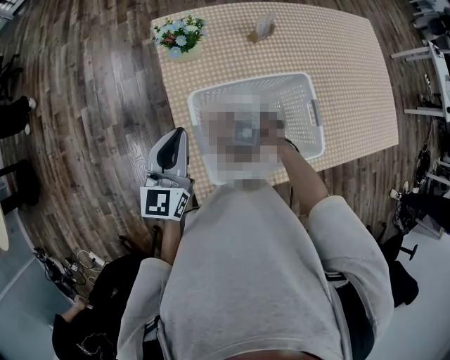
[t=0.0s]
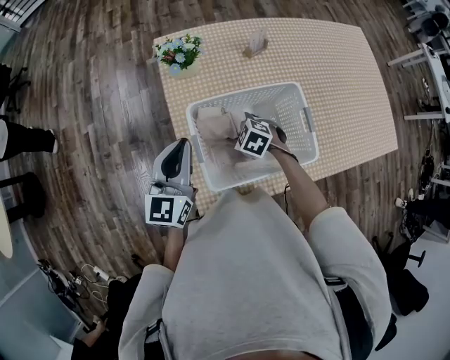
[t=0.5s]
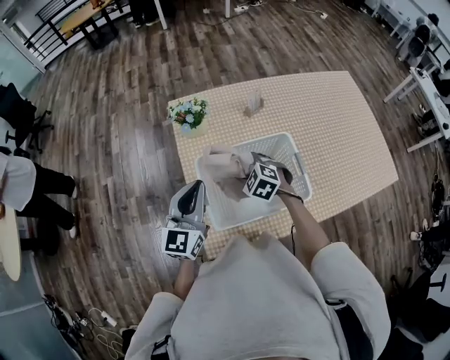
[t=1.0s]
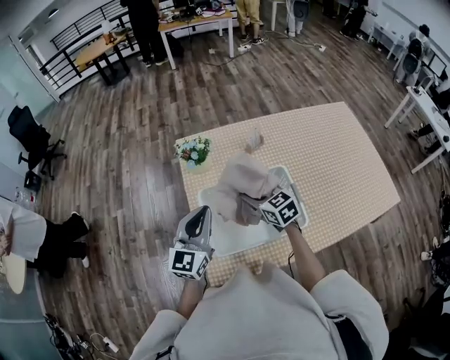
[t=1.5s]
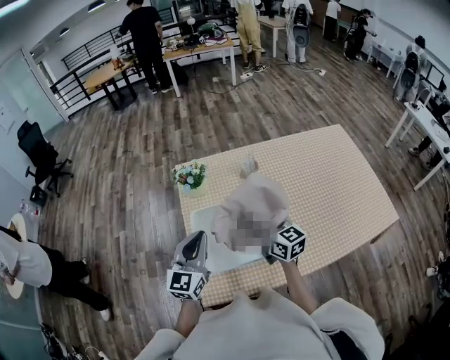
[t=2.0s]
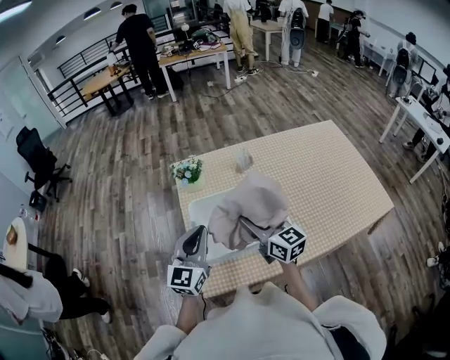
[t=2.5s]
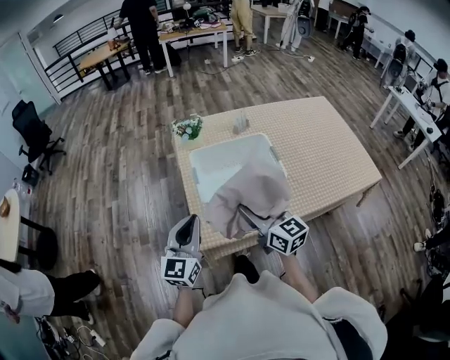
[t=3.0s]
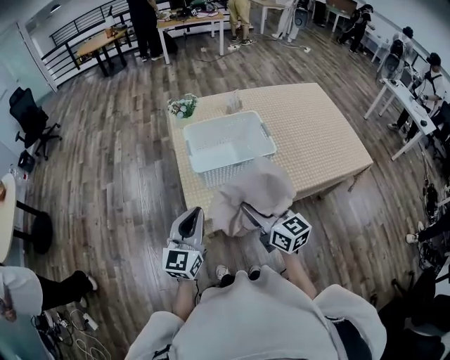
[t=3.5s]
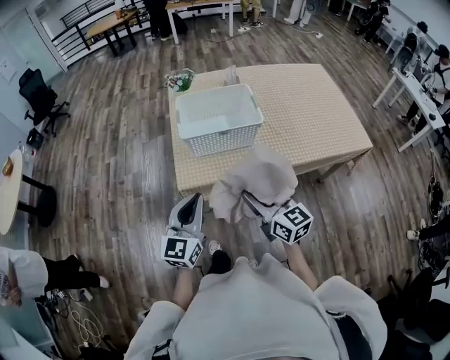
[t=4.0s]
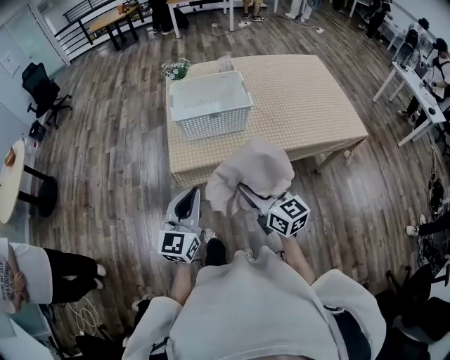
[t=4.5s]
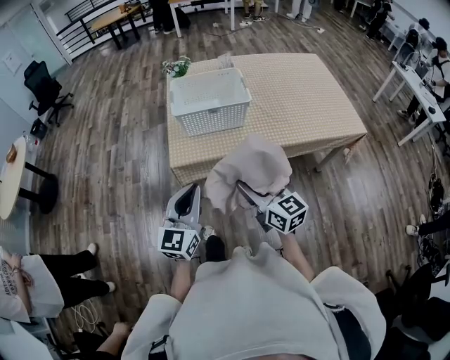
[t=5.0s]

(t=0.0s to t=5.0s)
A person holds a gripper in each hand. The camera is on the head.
t=0.0s - t=2.5s: The right gripper travels upward by approximately 35 cm, and tips its fingers upward by roughly 70 degrees. Meanwhile the left gripper ends up about 15 cm from where it was.
t=2.5s - t=5.0s: The pair of grippers is taken backward, some 40 cm.

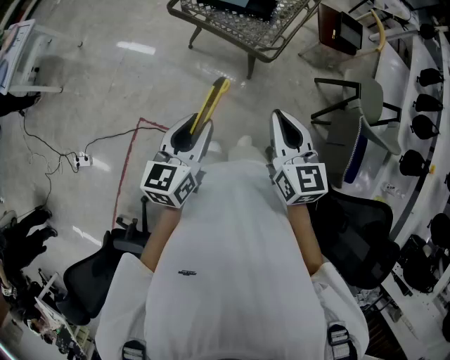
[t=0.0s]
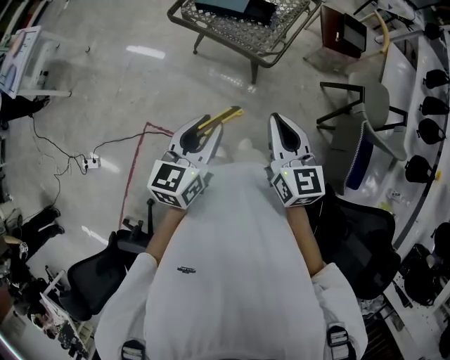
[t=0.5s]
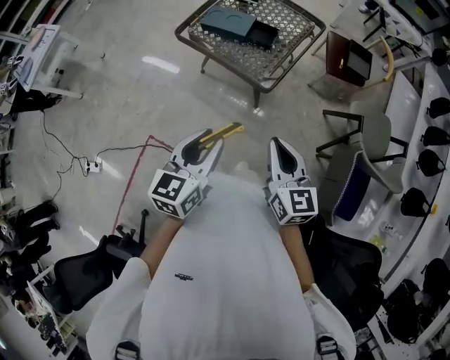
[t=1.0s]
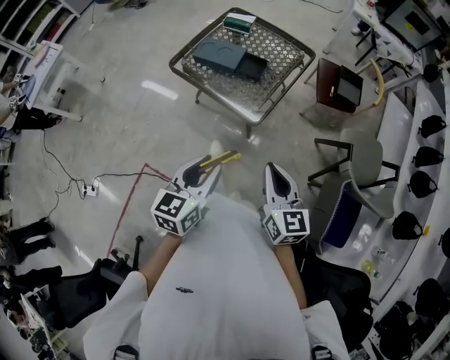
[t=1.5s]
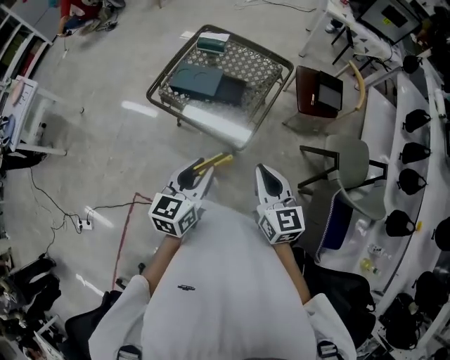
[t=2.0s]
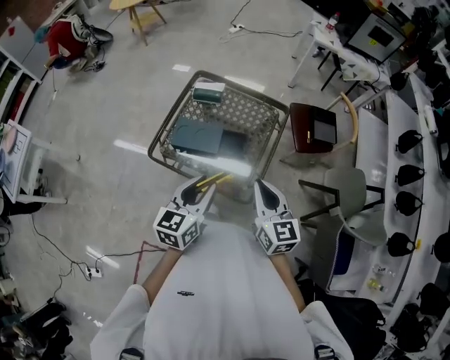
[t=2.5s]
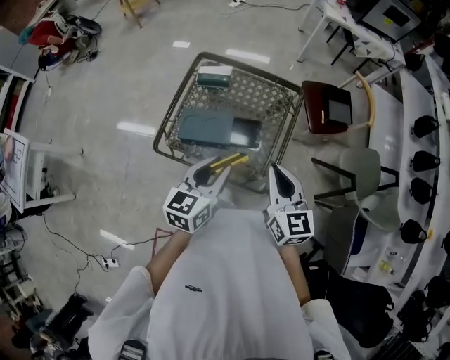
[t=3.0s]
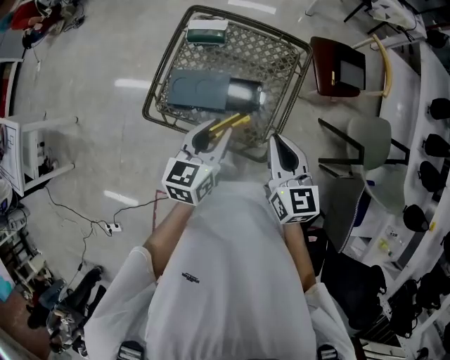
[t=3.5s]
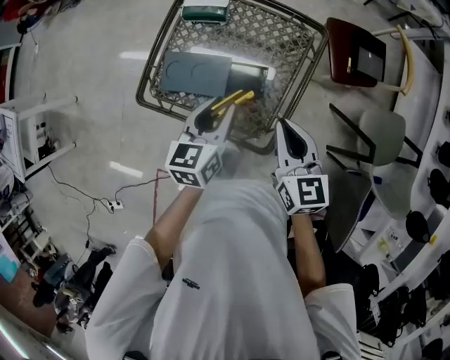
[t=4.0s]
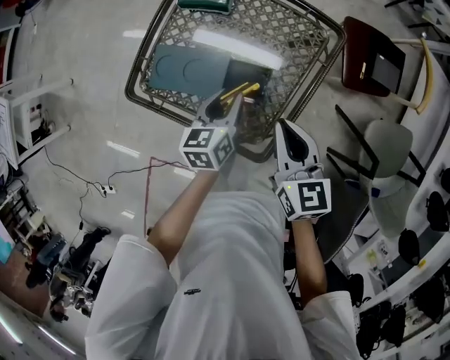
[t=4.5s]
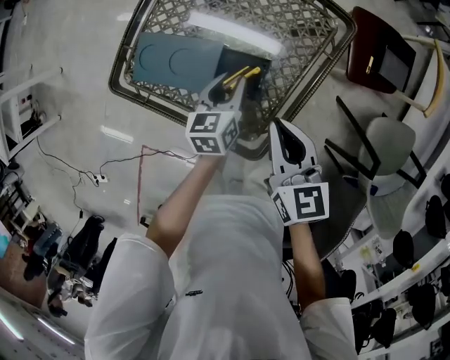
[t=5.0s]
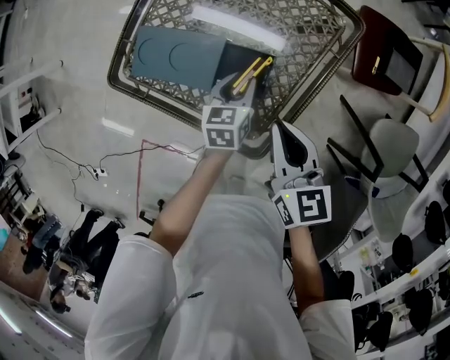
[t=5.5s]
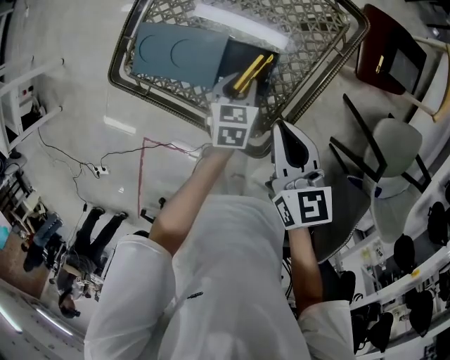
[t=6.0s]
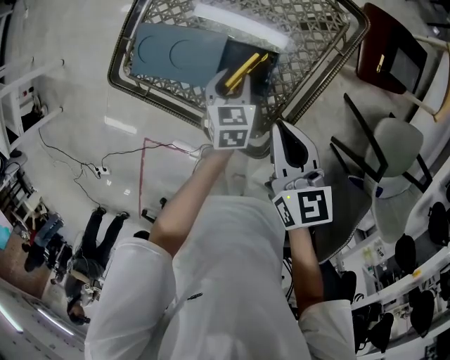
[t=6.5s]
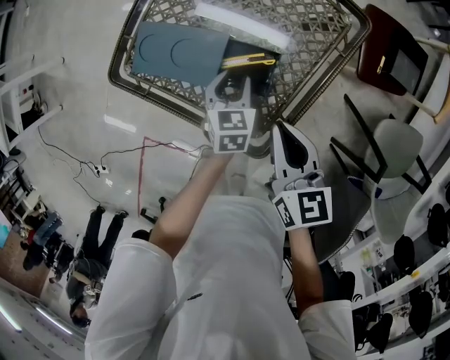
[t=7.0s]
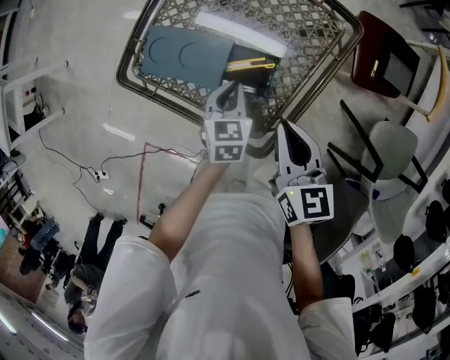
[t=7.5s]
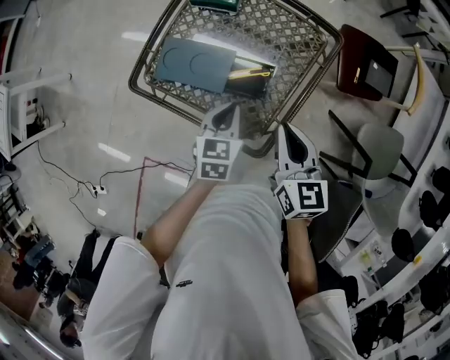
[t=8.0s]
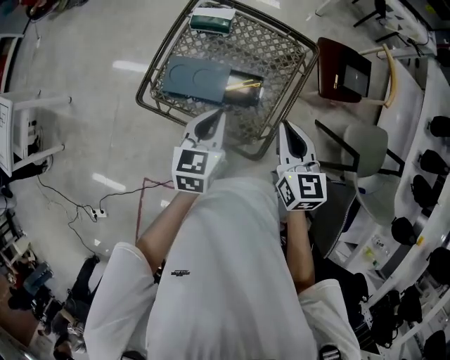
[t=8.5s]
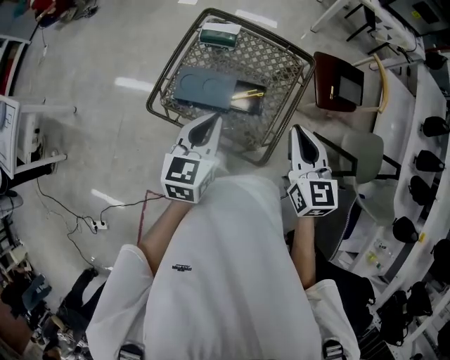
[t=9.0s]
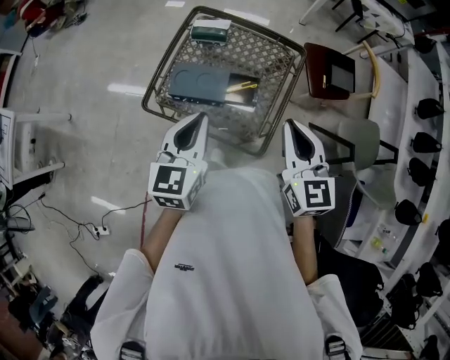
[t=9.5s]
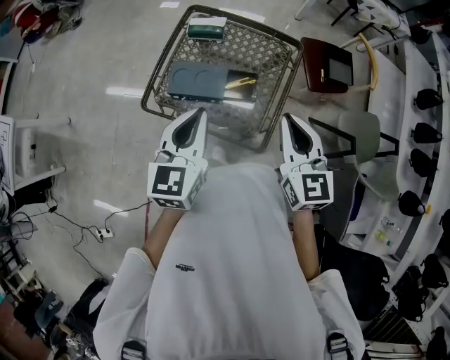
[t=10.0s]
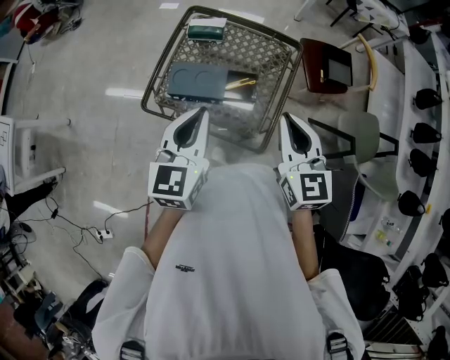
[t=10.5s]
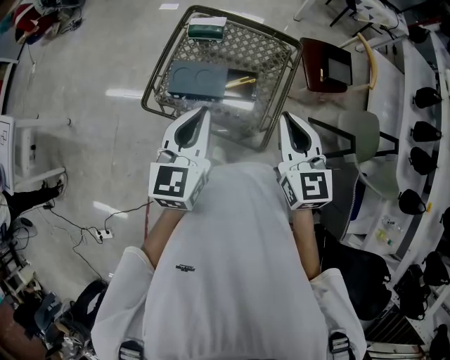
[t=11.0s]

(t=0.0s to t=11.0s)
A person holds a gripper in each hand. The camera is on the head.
t=0.0s - t=2.0s: Both grippers travel together forward and to the right, some 25 cm.
t=2.0s - t=3.5s: The two grippers go approximately 25 cm forward.
t=3.5s - t=5.5s: The right gripper heads downward and forward, covering roughly 20 cm, while the left gripper goes approximately 30 cm downward, and swivels roughly 30 degrees.
t=5.5s - t=7.5s: The left gripper shifts by approximately 5 cm, and closes.
t=7.5s - t=9.0s: The right gripper goes roughly 20 cm upward, and rotates some 20 degrees. Meanwhile the left gripper heads upward, covering some 30 cm, and rotates approximately 30 degrees.
t=9.0s - t=11.0s: The right gripper ends up roughly 5 cm from where it was; the left gripper goes about 5 cm upward.

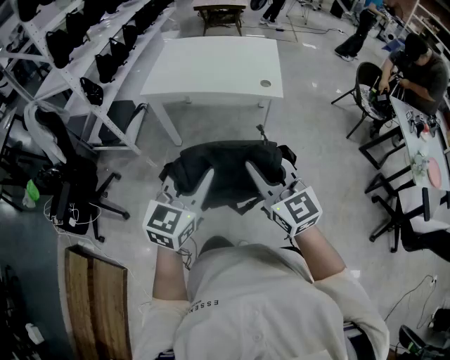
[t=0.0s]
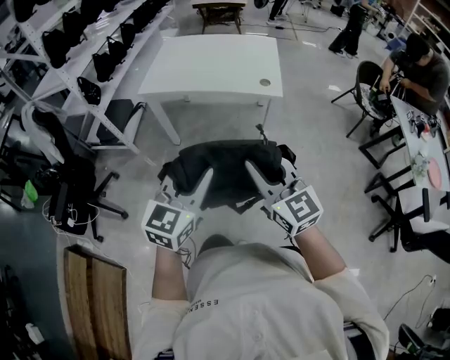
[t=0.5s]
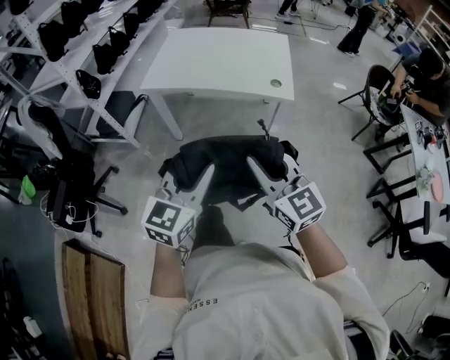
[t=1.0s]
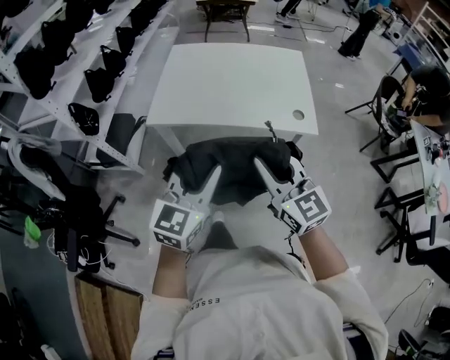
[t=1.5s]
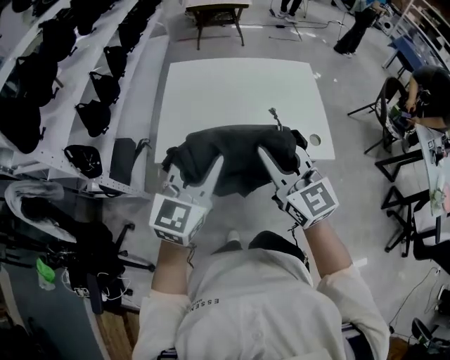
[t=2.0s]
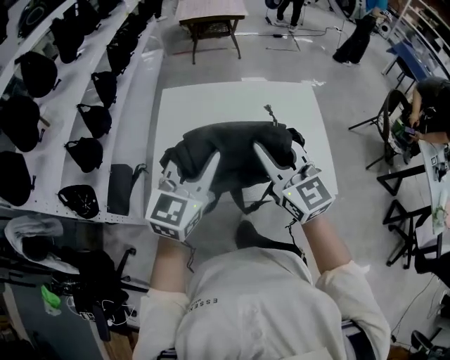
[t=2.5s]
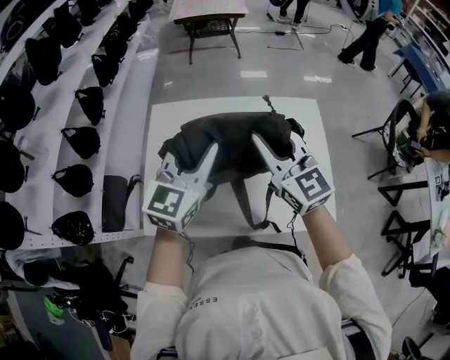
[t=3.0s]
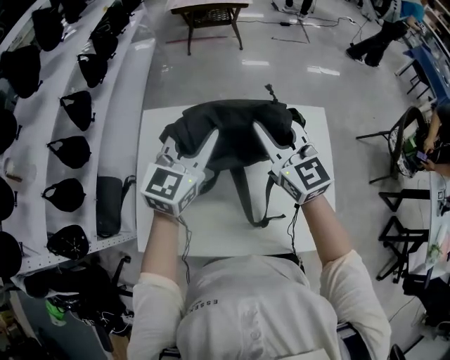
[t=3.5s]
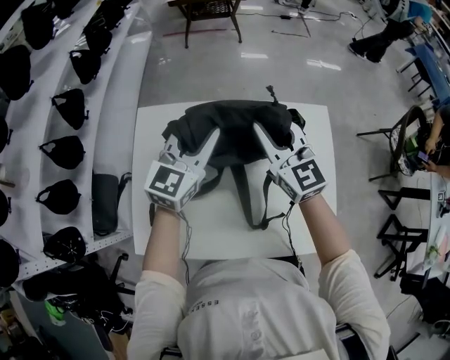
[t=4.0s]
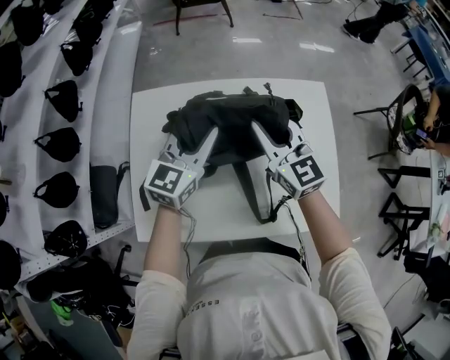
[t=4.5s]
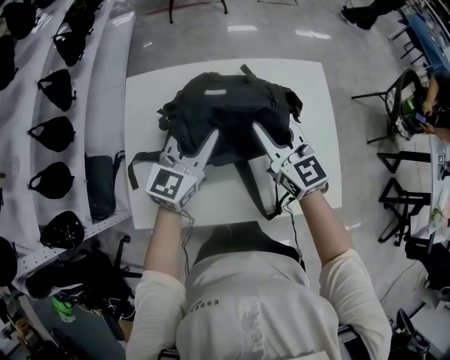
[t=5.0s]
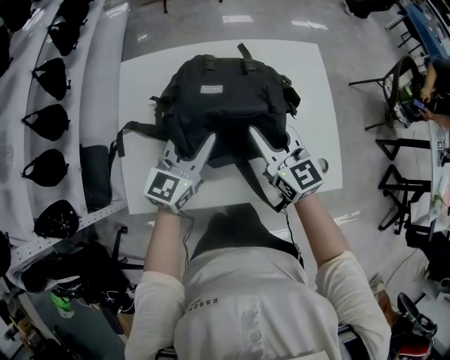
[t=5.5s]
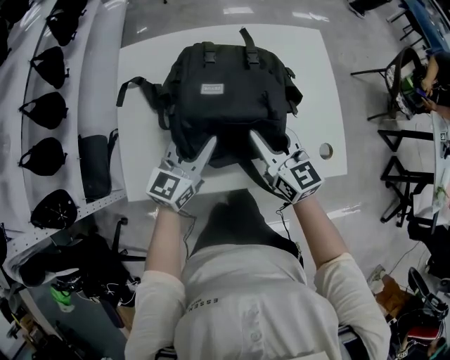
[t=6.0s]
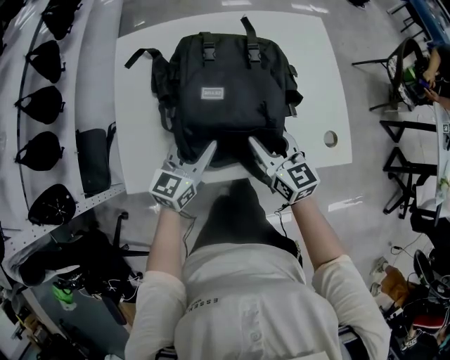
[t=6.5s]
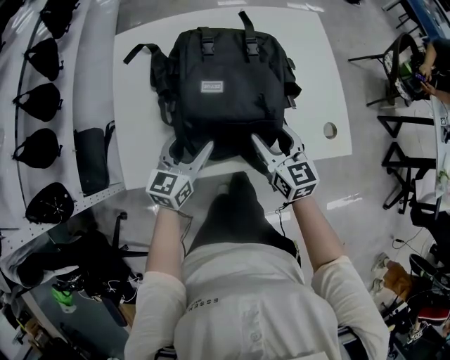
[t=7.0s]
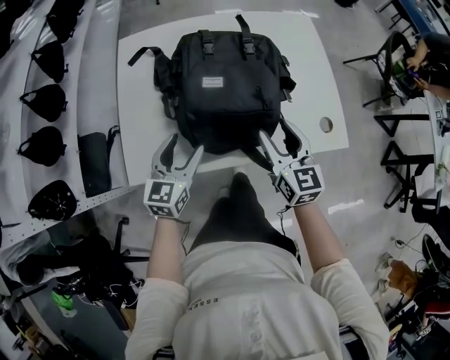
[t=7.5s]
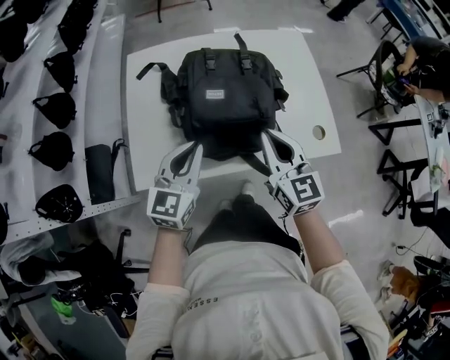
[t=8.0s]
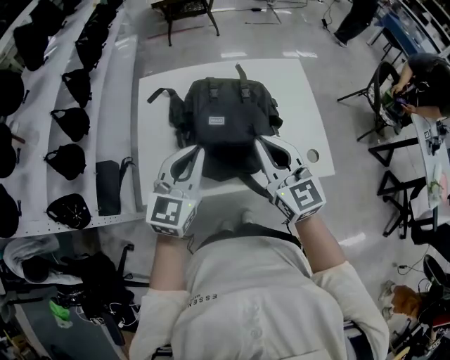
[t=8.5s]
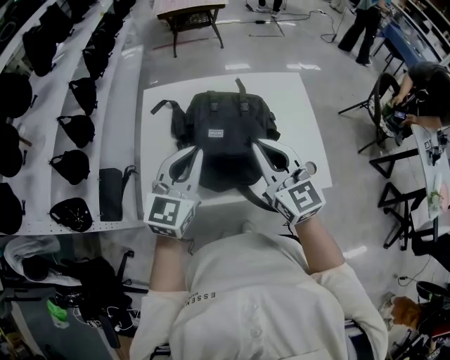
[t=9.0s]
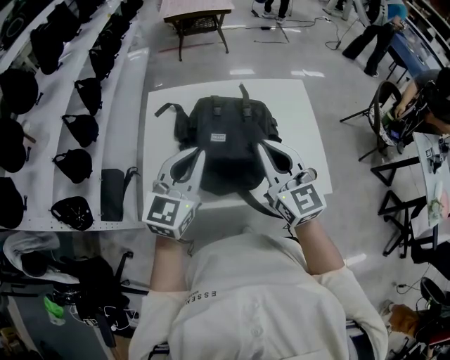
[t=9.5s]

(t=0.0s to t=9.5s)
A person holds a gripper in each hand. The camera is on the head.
t=0.0s - t=2.0s: The pair of grippers is taken forward, some 50 cm.
t=2.0s - t=4.0s: The pair of grippers is taken forward, approximately 50 cm.
t=4.0s - t=5.5s: The two grippers go roughly 20 cm backward and downward.
t=5.5s - t=7.5s: The left gripper heads backward, downward and to the left, covering approximately 15 cm, and opens. Meanwhile the right gripper shifts about 15 cm backward and downward, and opens.
t=7.5s - t=9.5s: Both grippers travel together upward, roughly 20 cm. The left gripper closes its fingers. Meanwhile the right gripper swivels some 20 degrees, and closes its fingers.

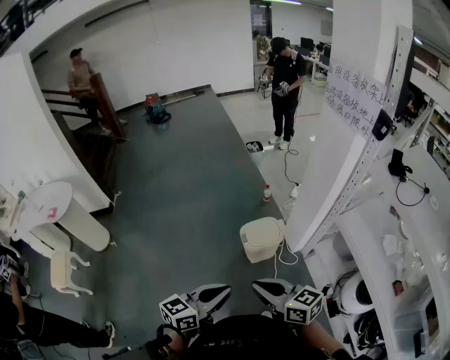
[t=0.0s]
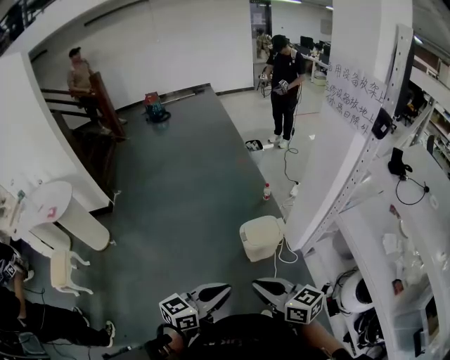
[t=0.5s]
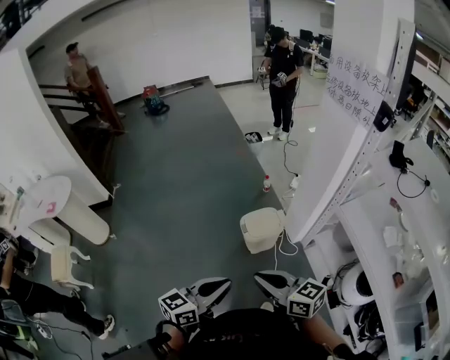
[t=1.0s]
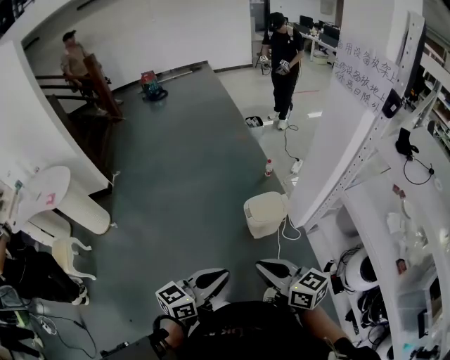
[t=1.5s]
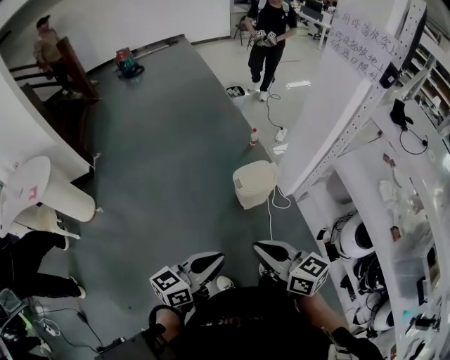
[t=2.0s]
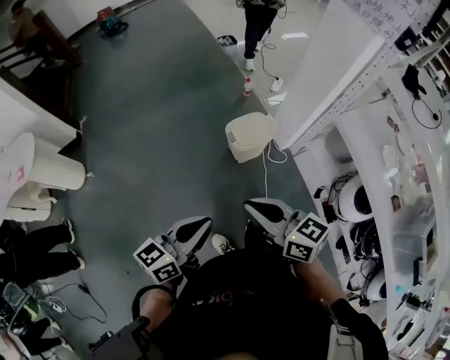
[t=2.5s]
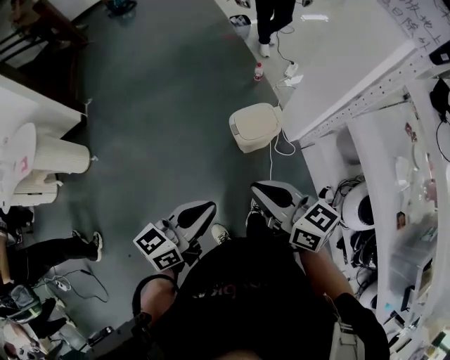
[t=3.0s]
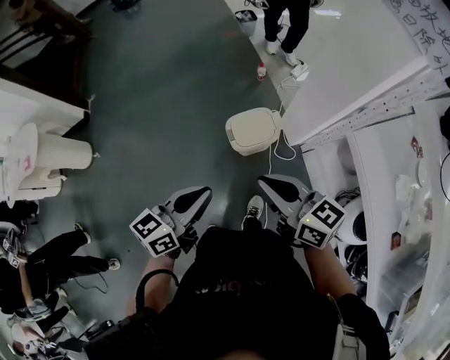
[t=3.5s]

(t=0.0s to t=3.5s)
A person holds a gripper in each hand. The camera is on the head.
t=0.0s - t=2.0s: The two grippers go roughly 10 cm to the left.
t=2.0s - t=3.5s: Both grippers travel together forward and to the right, approximately 25 cm.